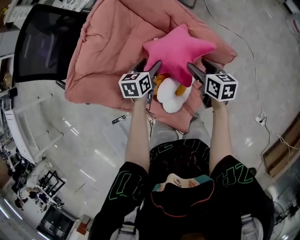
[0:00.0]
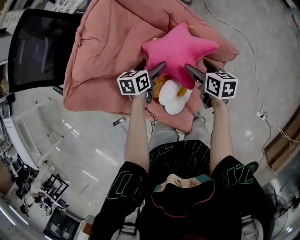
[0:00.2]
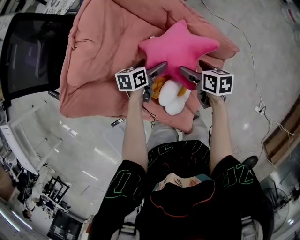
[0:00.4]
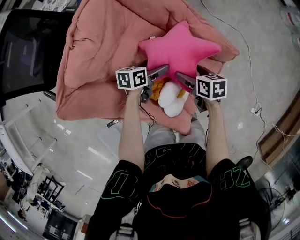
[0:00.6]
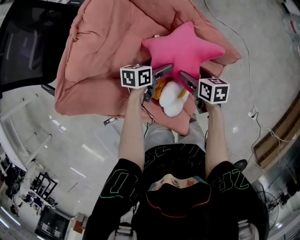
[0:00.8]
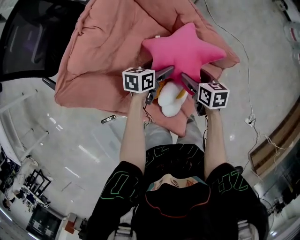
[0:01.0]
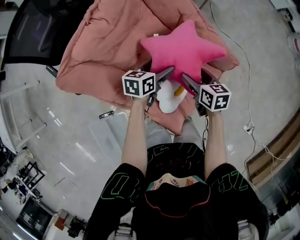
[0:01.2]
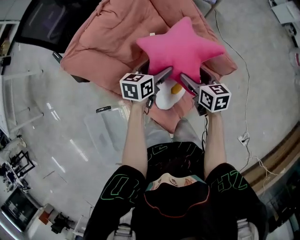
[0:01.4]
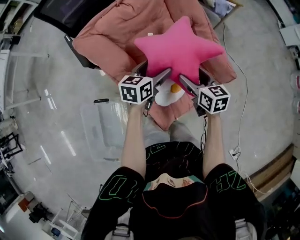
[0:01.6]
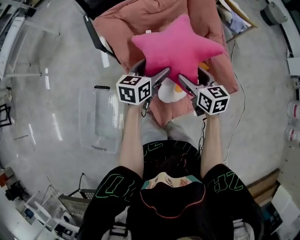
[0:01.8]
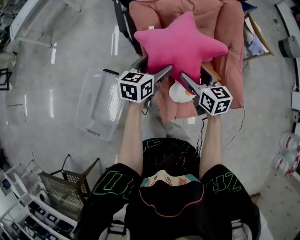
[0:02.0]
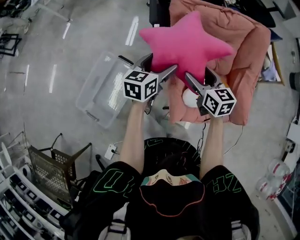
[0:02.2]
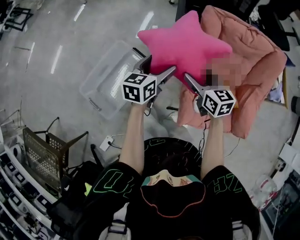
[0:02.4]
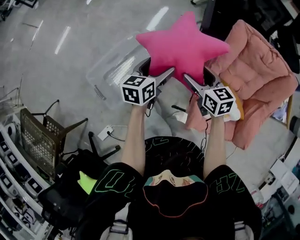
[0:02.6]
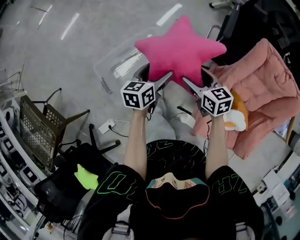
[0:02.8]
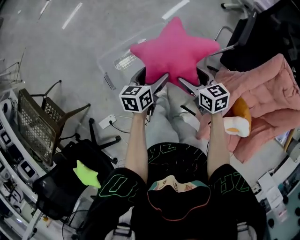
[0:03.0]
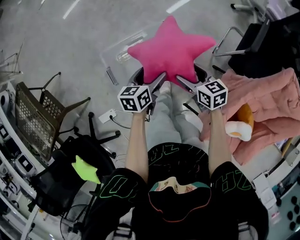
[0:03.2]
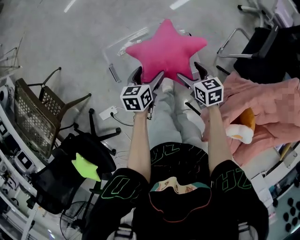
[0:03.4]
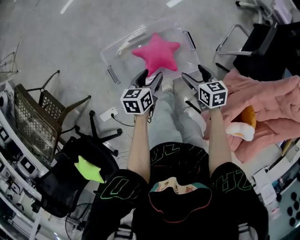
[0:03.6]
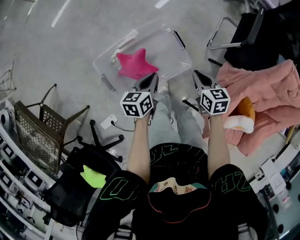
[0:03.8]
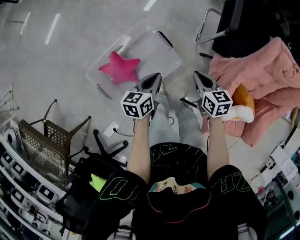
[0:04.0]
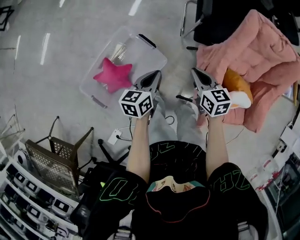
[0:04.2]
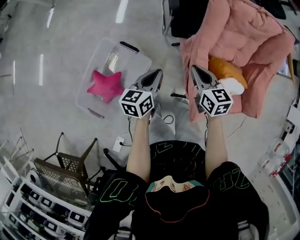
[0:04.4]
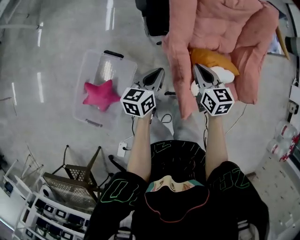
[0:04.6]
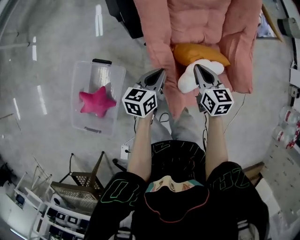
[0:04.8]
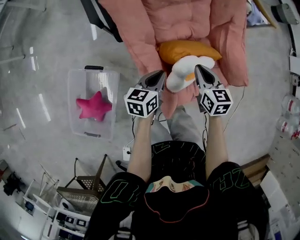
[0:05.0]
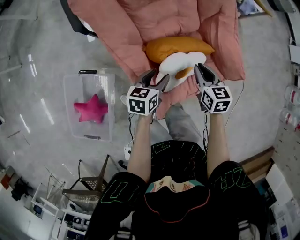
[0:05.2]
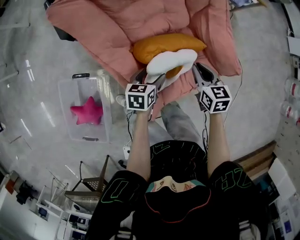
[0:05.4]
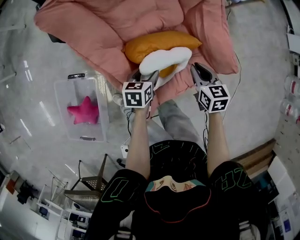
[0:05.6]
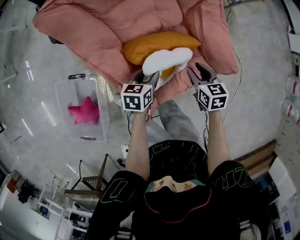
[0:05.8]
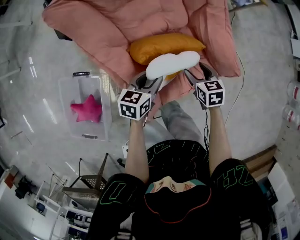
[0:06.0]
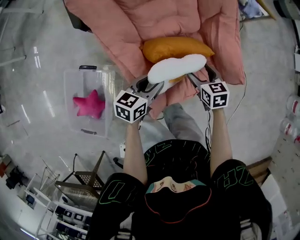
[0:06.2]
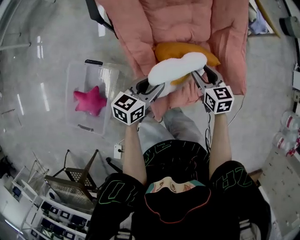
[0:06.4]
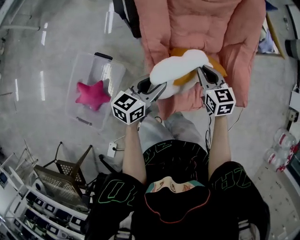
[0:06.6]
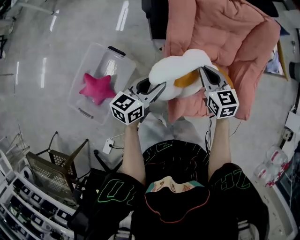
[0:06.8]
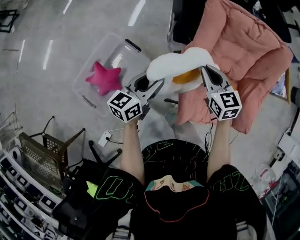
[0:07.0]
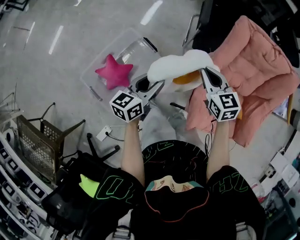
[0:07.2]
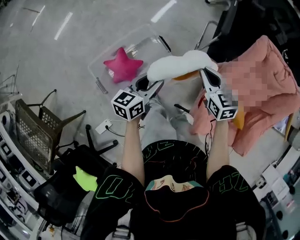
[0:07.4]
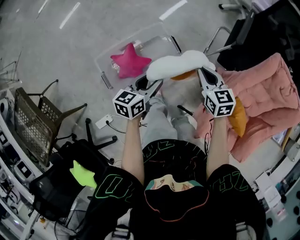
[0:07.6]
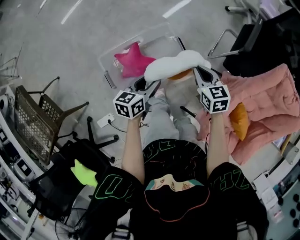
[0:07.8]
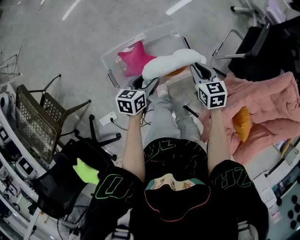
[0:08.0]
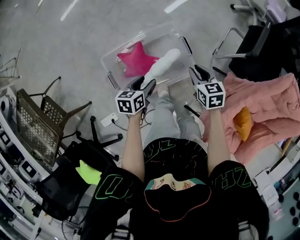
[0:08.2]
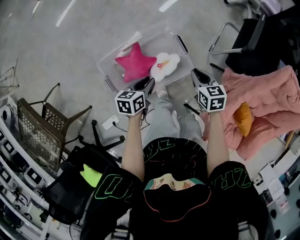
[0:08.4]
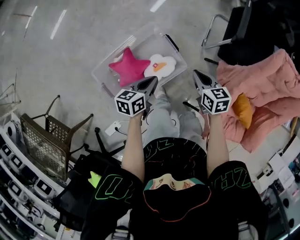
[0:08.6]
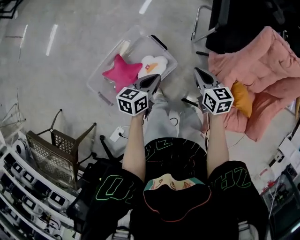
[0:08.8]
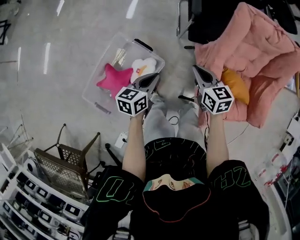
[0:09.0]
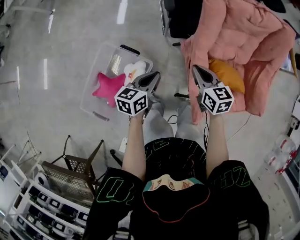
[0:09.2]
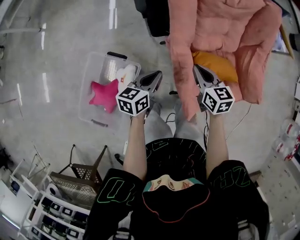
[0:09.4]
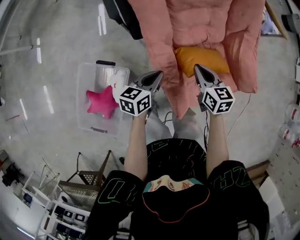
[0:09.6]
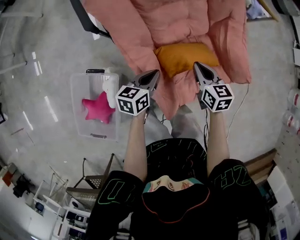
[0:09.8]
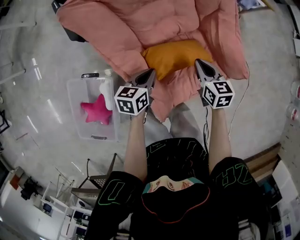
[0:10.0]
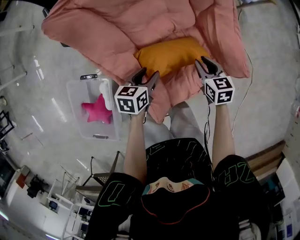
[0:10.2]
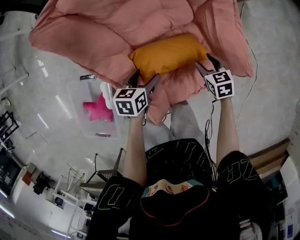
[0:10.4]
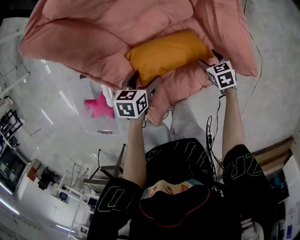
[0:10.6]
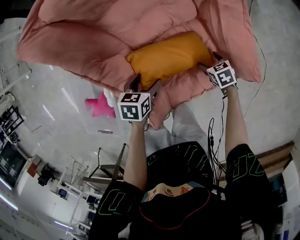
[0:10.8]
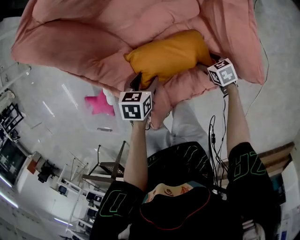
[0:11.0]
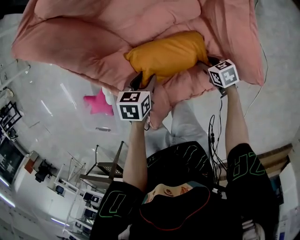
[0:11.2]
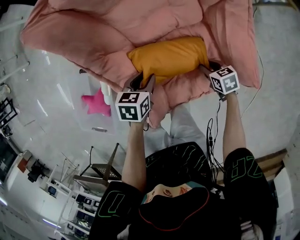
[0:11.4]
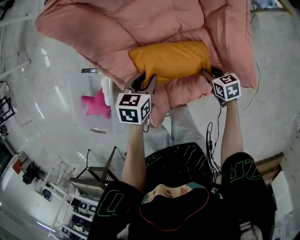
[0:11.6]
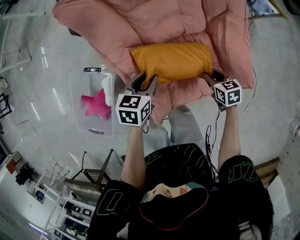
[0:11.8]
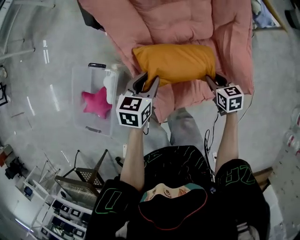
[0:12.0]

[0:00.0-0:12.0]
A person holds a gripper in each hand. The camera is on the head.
0:00.0 to 0:01.6: The right gripper changes place by roughly 10 cm, and swivels some 30 degrees. The left gripper changes place by roughly 15 cm.
0:01.6 to 0:03.0: The two grippers travel together, some 60 cm. The left gripper changes its angle by some 70 degrees; the right gripper turns by approximately 80 degrees.
0:03.0 to 0:04.4: The left gripper moves roughly 10 cm downward and comes back, turns by roughly 30 degrees, and closes; the right gripper travels downward and back again, some 10 cm each way, swivels roughly 40 degrees, and closes.
0:04.4 to 0:06.0: The left gripper reaches roughly 10 cm downward, then returns, rotates about 40 degrees, and opens and closes again. The right gripper shifts by about 40 cm, changes its angle by roughly 30 degrees, and opens its fingers.
0:06.0 to 0:07.6: The pair of grippers is taken about 60 cm. The left gripper changes its angle by some 60 degrees, while the right gripper rotates approximately 60 degrees, and closes its fingers.
0:07.6 to 0:09.0: The right gripper shifts by roughly 15 cm, and turns by some 30 degrees, while the left gripper moves approximately 15 cm, changes its angle by approximately 30 degrees, and closes up.
0:09.0 to 0:10.4: The two grippers travel together, approximately 50 cm. The right gripper swivels about 30 degrees, and opens, while the left gripper turns by roughly 30 degrees, and opens its fingers.
0:10.4 to 0:12.0: The left gripper shifts roughly 10 cm upward and to the left, and closes up, while the right gripper moves about 10 cm downward and comes back.

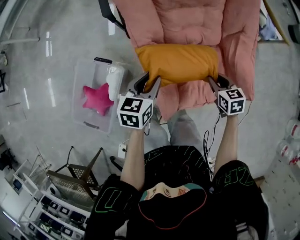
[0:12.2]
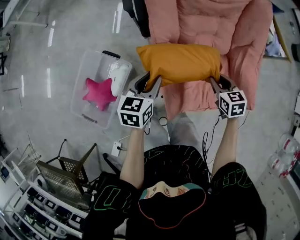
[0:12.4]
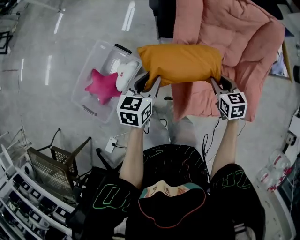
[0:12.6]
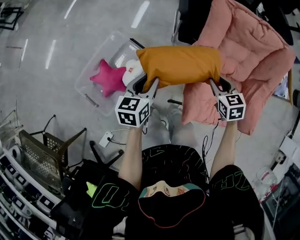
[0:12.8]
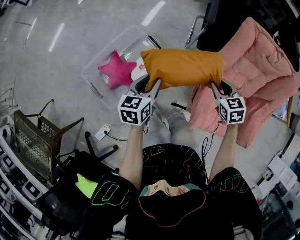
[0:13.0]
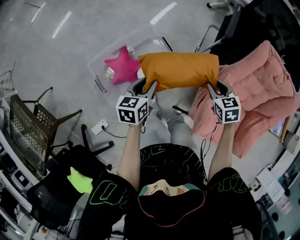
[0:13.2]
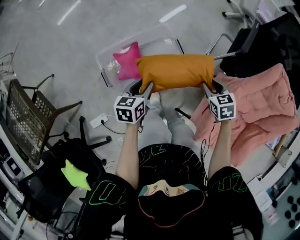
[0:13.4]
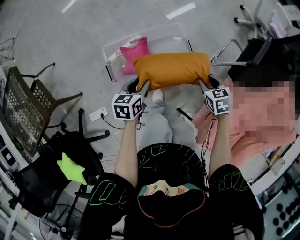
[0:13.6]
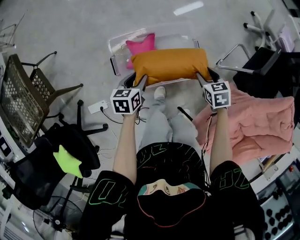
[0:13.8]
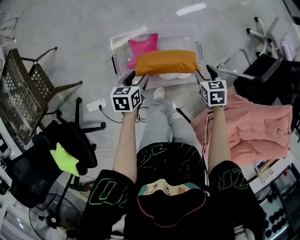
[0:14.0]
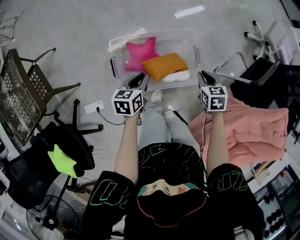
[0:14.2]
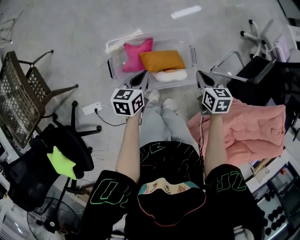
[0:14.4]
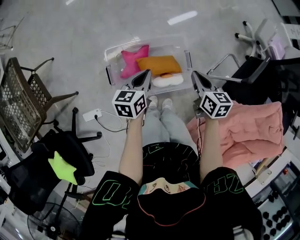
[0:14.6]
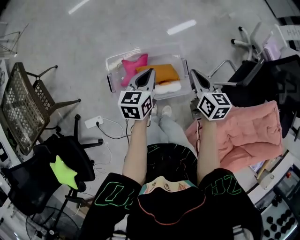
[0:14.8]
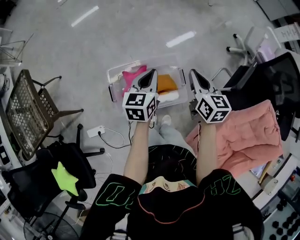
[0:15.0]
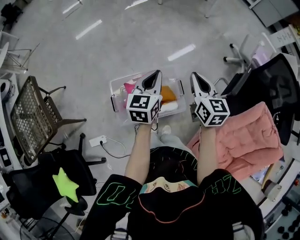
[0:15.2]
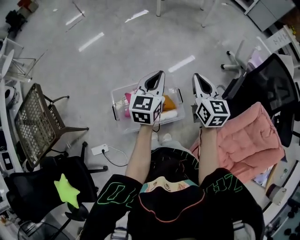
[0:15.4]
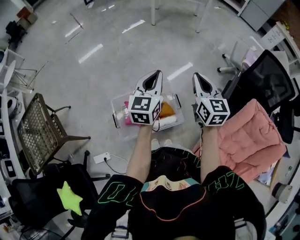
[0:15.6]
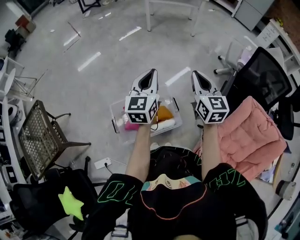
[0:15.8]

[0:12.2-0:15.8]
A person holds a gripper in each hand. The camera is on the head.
0:12.2 to 0:14.0: The pair of grippers is taken some 60 cm. The left gripper rotates approximately 60 degrees. Meanwhile the right gripper rotates around the line of its fingers by about 50 degrees, counterclockwise from behind.
0:14.0 to 0:15.8: Both grippers travel together upward and forward, approximately 40 cm. The left gripper points its fingers about 40 degrees further upward, and closes. Meanwhile the right gripper tips its fingers upward by some 50 degrees, and closes up.

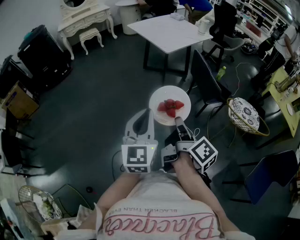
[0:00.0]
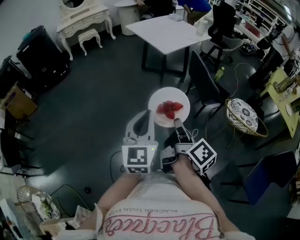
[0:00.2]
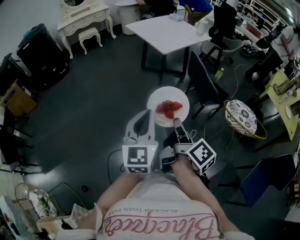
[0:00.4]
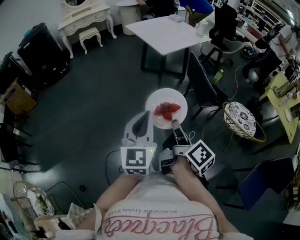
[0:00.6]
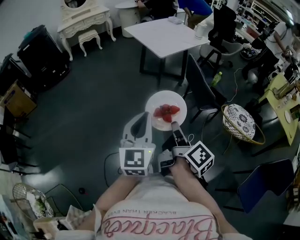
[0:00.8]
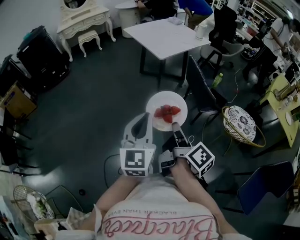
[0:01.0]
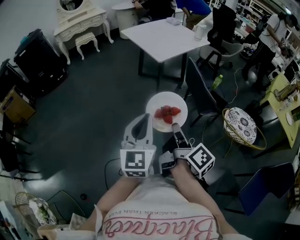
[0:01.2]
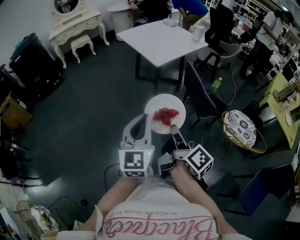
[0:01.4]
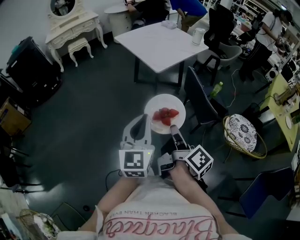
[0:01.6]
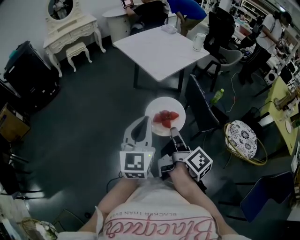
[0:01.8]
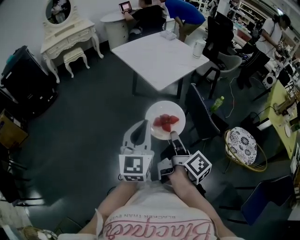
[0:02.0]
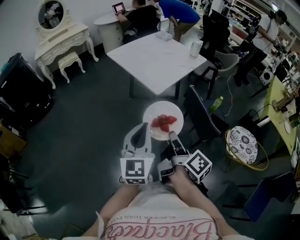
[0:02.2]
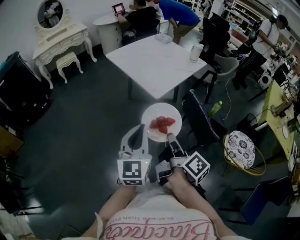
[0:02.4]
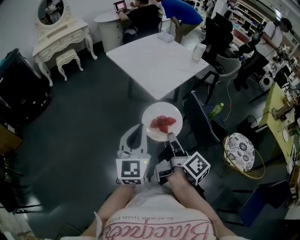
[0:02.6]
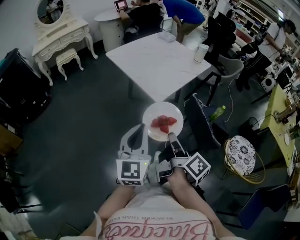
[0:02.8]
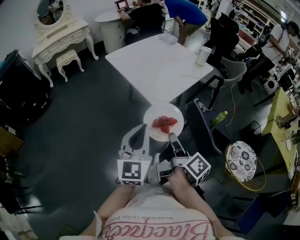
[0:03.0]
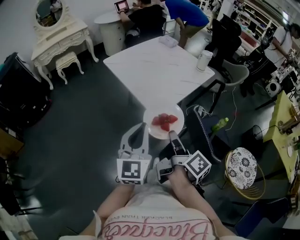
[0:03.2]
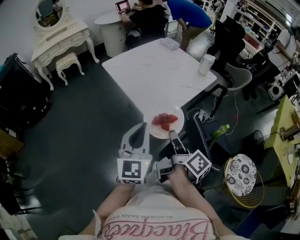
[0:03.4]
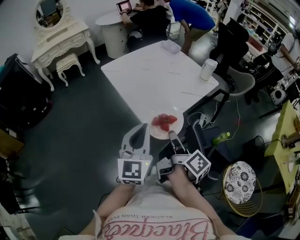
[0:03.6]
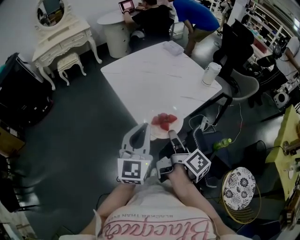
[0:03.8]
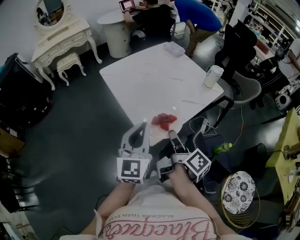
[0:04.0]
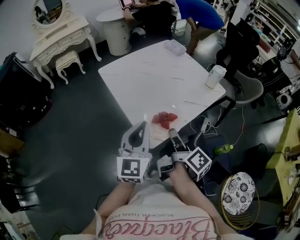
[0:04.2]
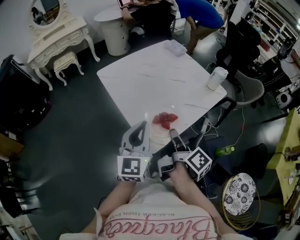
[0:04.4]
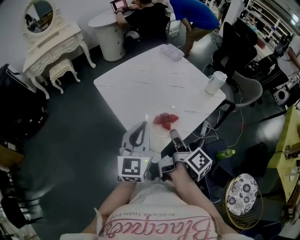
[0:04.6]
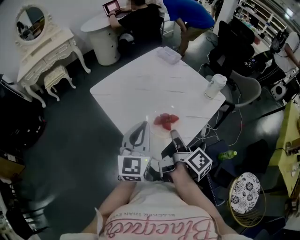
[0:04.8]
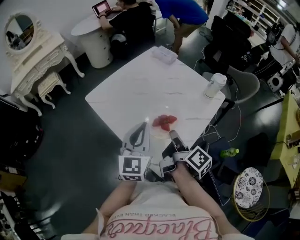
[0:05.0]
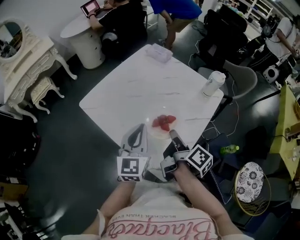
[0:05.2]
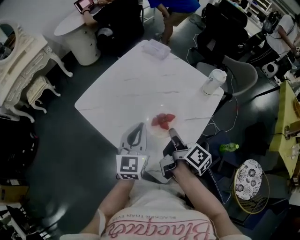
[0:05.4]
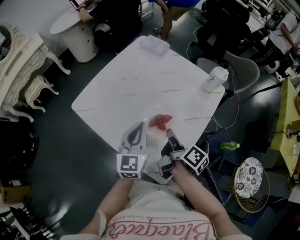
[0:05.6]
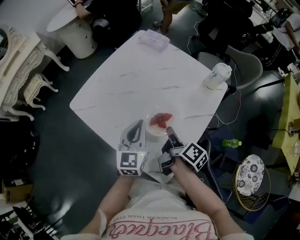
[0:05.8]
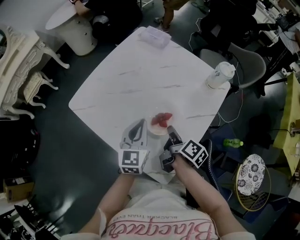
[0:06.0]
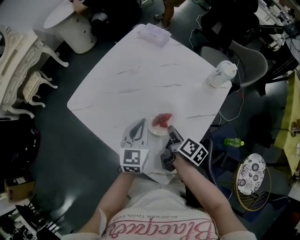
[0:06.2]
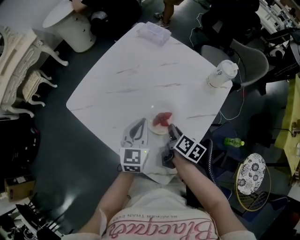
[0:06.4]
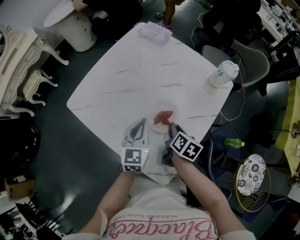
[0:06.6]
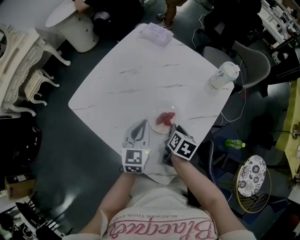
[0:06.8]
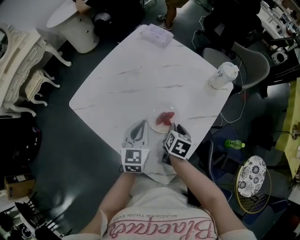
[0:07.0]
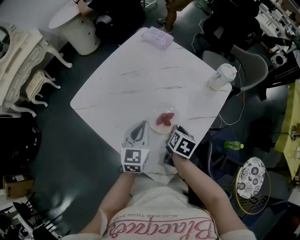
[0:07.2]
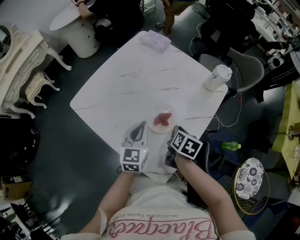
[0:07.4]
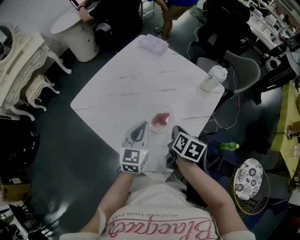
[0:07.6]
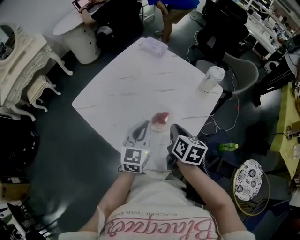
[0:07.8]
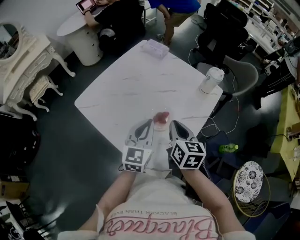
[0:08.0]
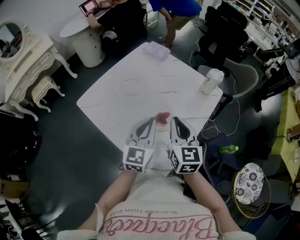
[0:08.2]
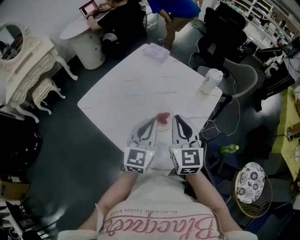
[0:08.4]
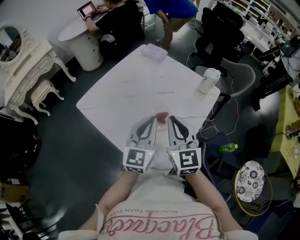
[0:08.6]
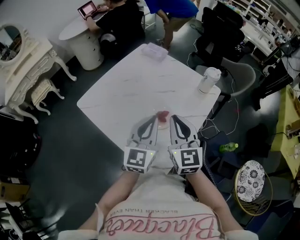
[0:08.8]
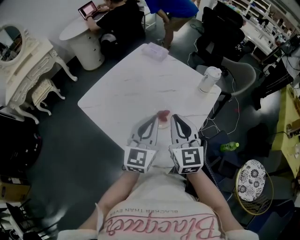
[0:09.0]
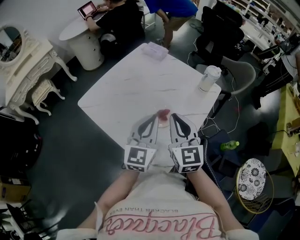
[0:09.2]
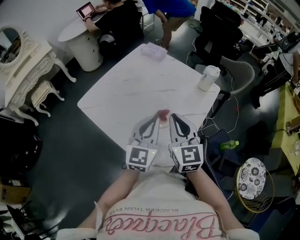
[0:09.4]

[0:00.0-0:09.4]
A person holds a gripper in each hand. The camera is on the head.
0:00.0 to 0:01.6: Both grippers travel together forward, about 20 cm.
0:01.6 to 0:03.2: Both grippers travel together forward, about 35 cm.
0:03.2 to 0:04.8: Both grippers travel together forward, approximately 35 cm.
0:04.8 to 0:06.2: The left gripper heads forward and downward, covering about 25 cm, and changes its angle by roughly 20 degrees. The right gripper shifts about 20 cm downward and forward, and changes its angle by about 20 degrees.
0:06.2 to 0:07.8: The right gripper is displaced upward by about 10 cm, and changes its angle by roughly 40 degrees; the left gripper moves approximately 5 cm.
0:07.8 to 0:09.4: The left gripper travels upward by roughly 10 cm; the right gripper goes roughly 15 cm upward, and rotates about 50 degrees.
